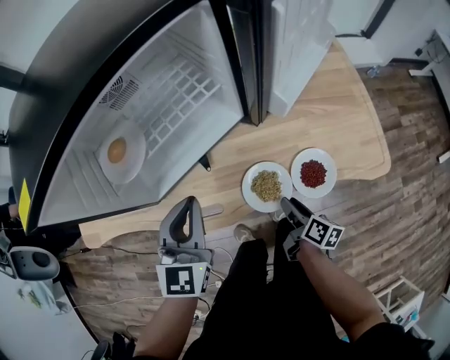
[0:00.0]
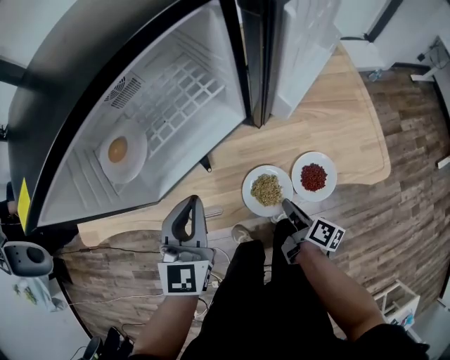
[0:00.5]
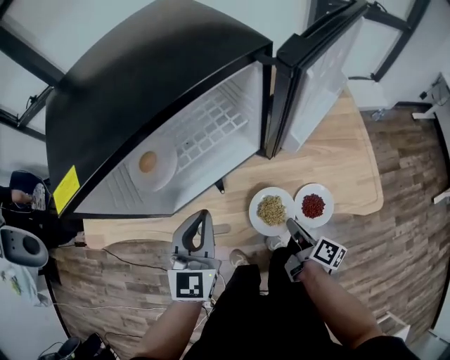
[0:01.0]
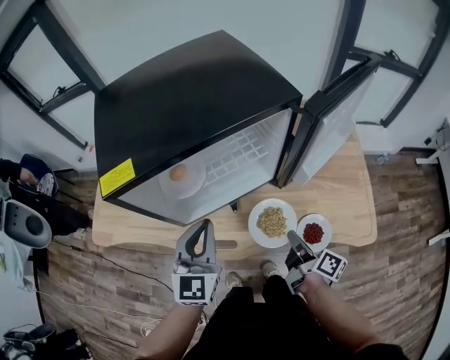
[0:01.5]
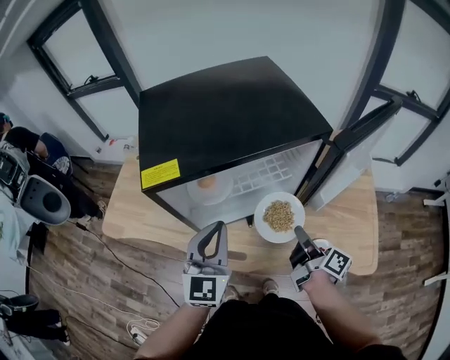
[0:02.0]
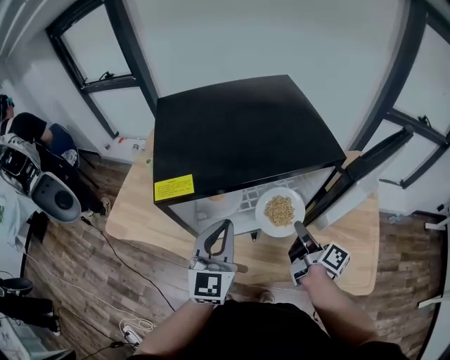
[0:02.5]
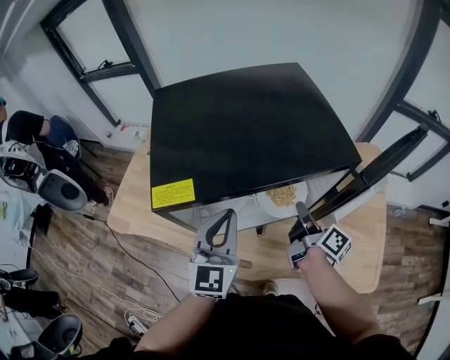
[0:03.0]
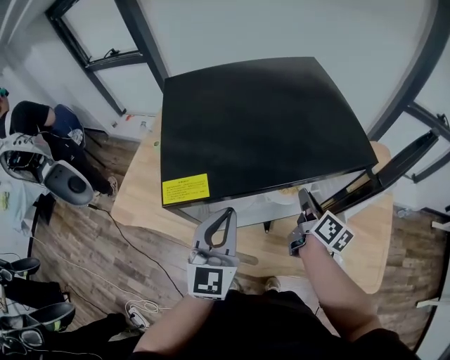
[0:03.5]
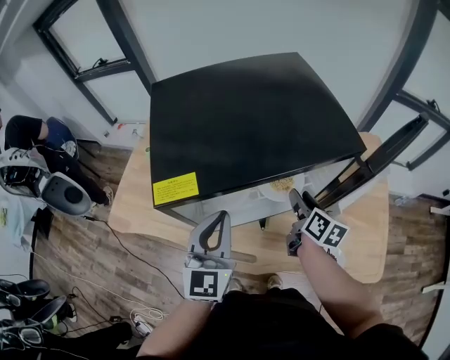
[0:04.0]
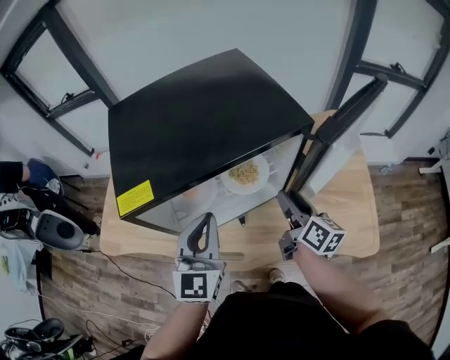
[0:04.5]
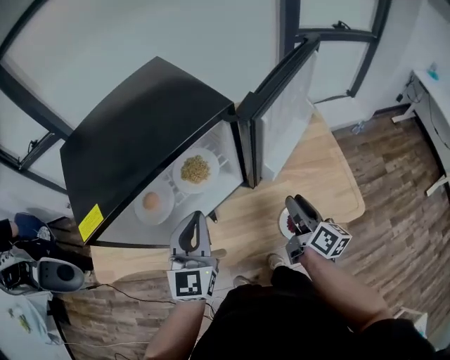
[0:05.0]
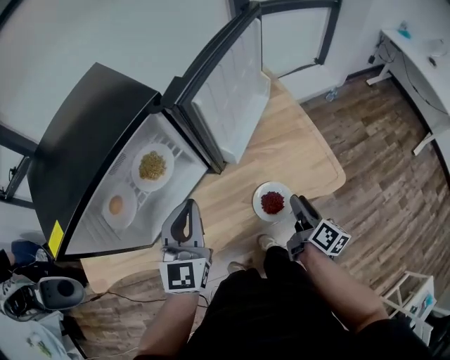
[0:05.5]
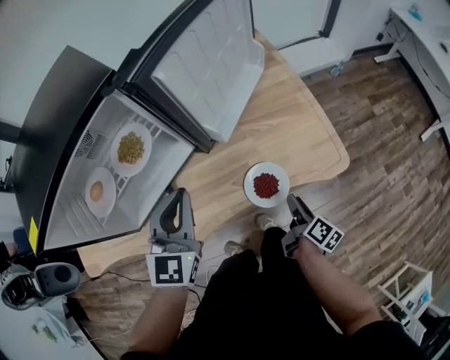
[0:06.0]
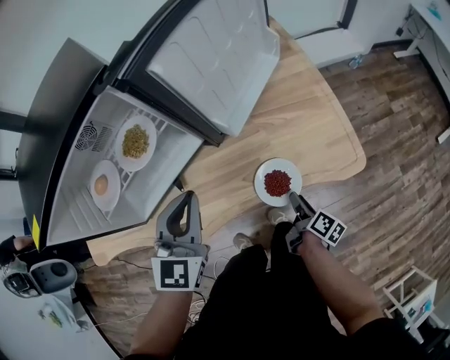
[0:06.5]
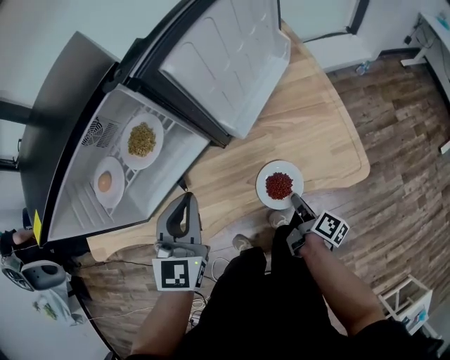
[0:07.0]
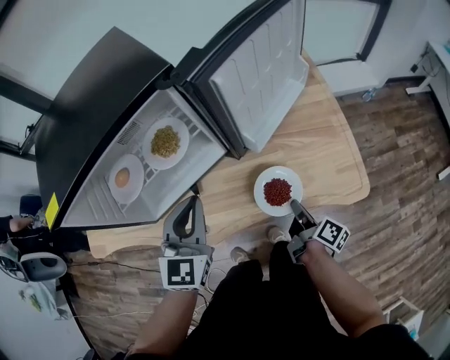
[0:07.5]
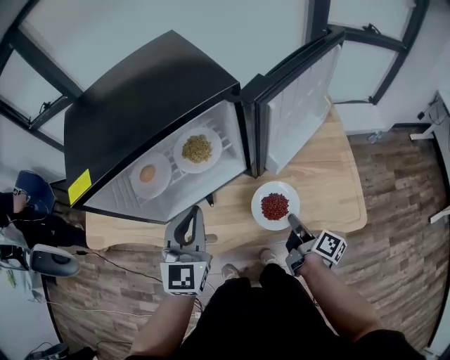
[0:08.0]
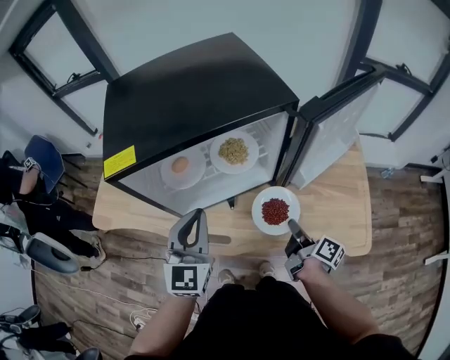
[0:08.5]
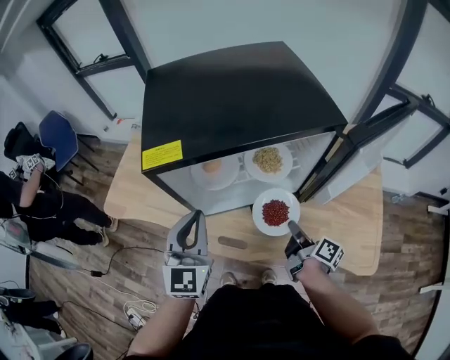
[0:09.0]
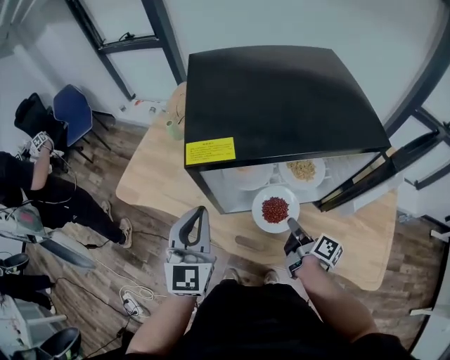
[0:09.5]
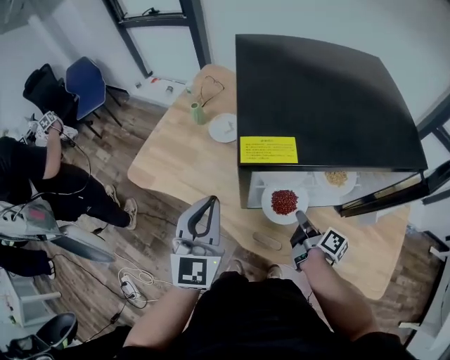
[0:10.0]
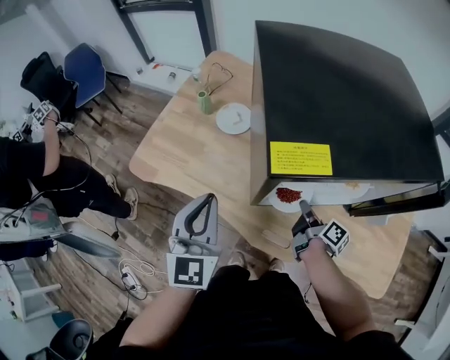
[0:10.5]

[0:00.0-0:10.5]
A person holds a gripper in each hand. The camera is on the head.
0:00.0 to 0:02.0: The left gripper travels upward and to the left by approximately 15 cm, and turns by roughly 20 degrees, while the right gripper heads upward and forward, covering about 25 cm, rotates roughly 30 degrees, and closes.
0:02.0 to 0:04.0: The left gripper is displaced forward by roughly 5 cm. The right gripper is displaced forward by some 15 cm, turns by roughly 30 degrees, and opens its fingers.
0:04.0 to 0:06.5: The right gripper moves roughly 50 cm, and rotates around the line of its fingers by about 40 degrees, clockwise from behind; the left gripper shifts by some 25 cm, and swivels some 30 degrees.
0:06.5 to 0:08.5: The right gripper changes place by roughly 25 cm, rotates about 30 degrees, and closes. The left gripper shifts by about 20 cm, and turns by approximately 30 degrees.
0:08.5 to 0:10.5: The right gripper heads to the left and forward, covering some 30 cm, while the left gripper shifts roughly 25 cm to the left.

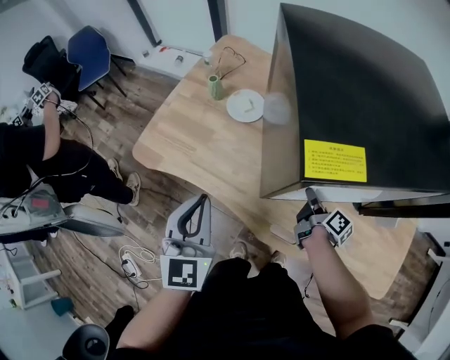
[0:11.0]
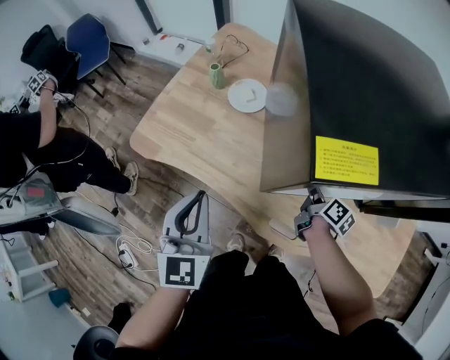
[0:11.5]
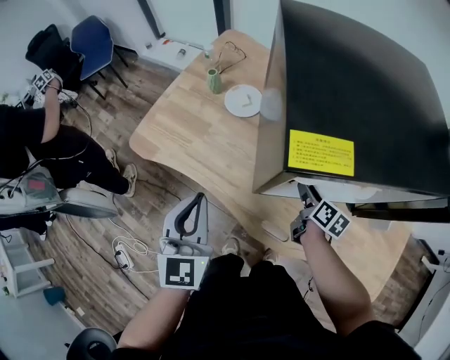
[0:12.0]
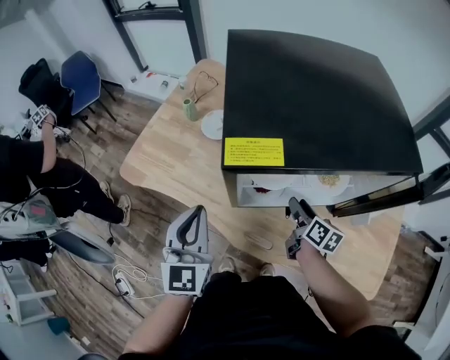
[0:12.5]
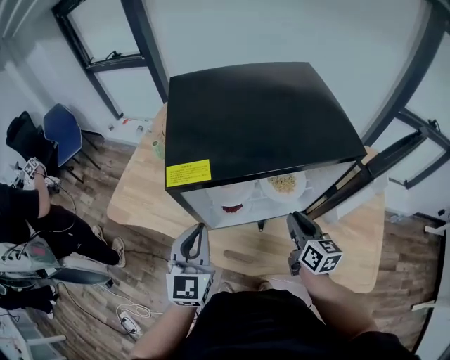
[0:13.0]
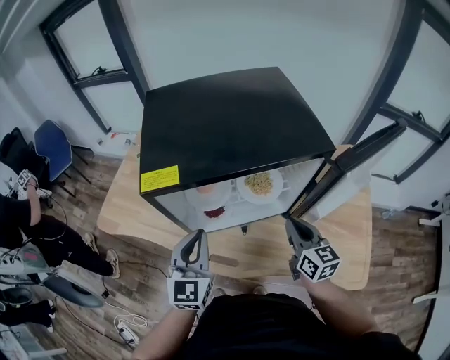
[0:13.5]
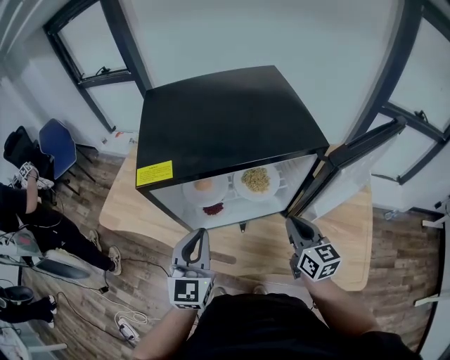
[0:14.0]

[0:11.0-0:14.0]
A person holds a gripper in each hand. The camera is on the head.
0:11.0 to 0:12.5: The left gripper travels to the right by approximately 5 cm. The right gripper travels upward by some 5 cm, turns by some 30 degrees, and opens up.
0:12.5 to 0:14.0: The left gripper heads to the right, covering approximately 15 cm. Meanwhile the right gripper is displaced upward, to the right and backward by roughly 20 cm, turns by approximately 30 degrees, and closes.

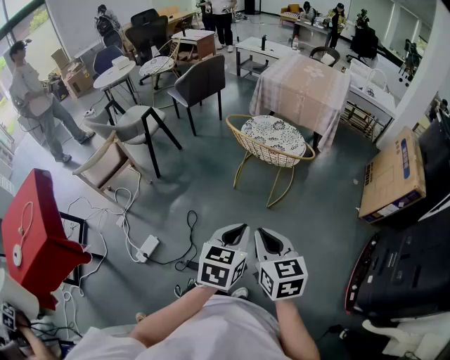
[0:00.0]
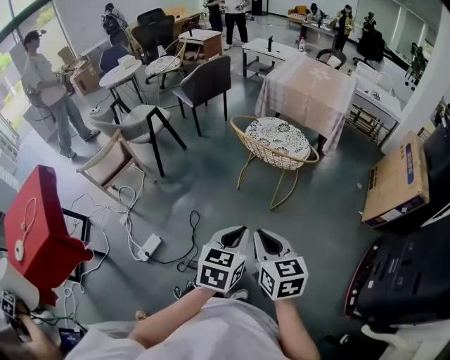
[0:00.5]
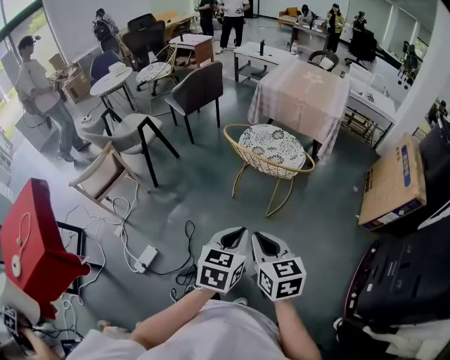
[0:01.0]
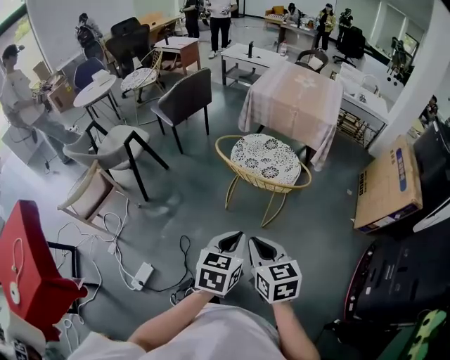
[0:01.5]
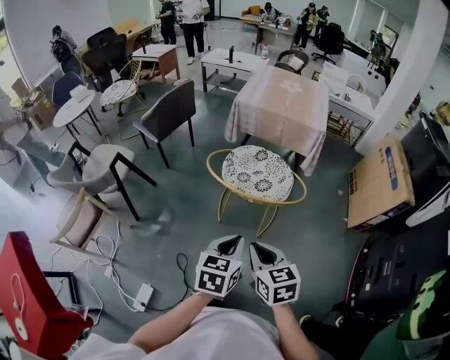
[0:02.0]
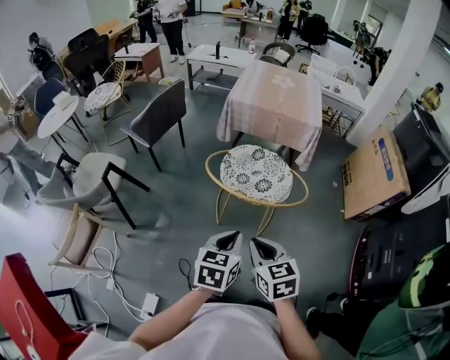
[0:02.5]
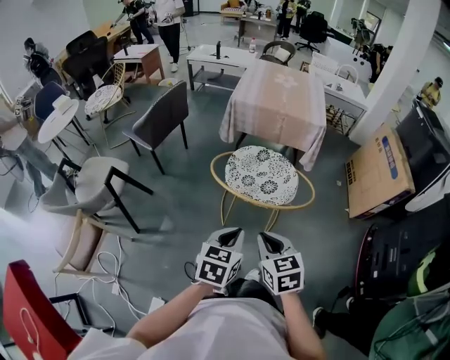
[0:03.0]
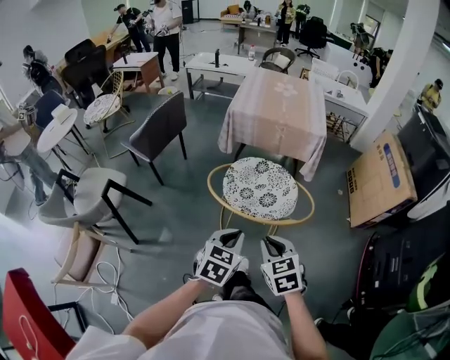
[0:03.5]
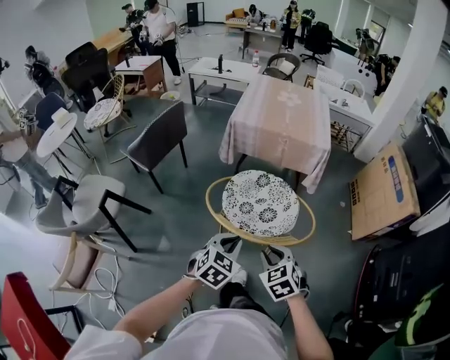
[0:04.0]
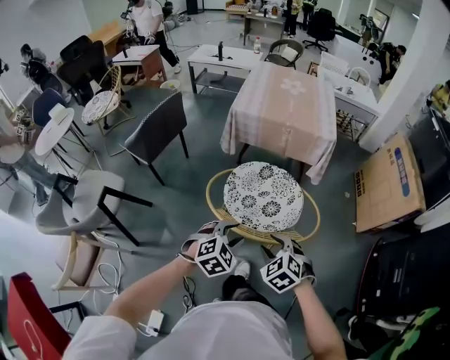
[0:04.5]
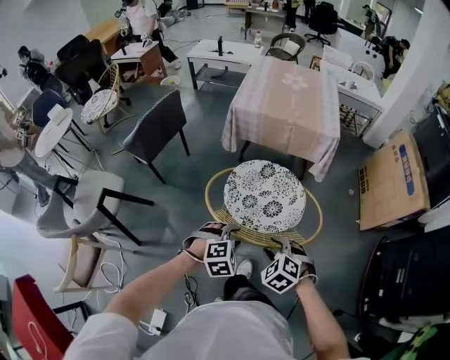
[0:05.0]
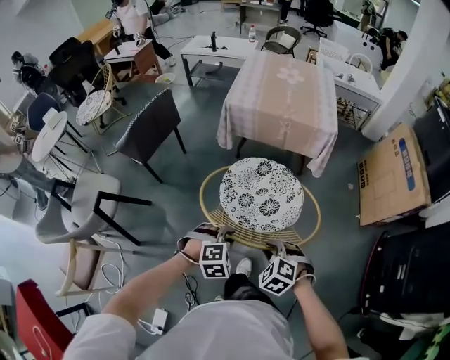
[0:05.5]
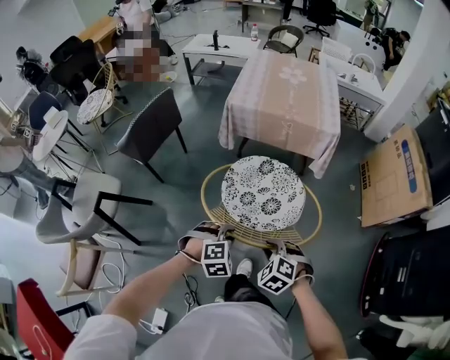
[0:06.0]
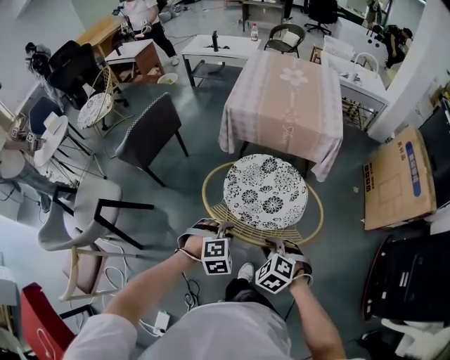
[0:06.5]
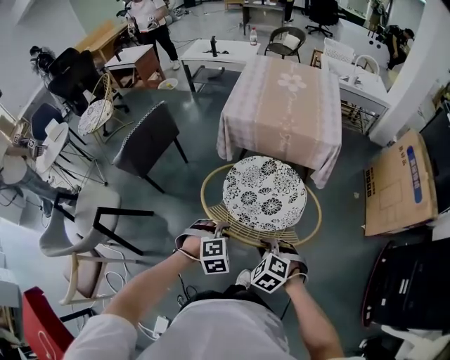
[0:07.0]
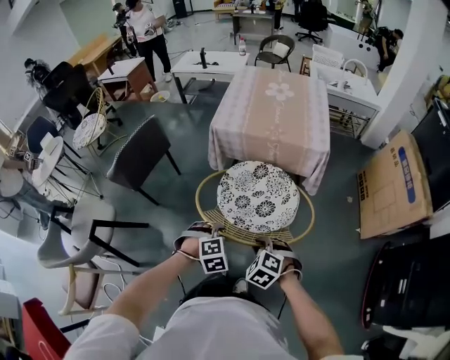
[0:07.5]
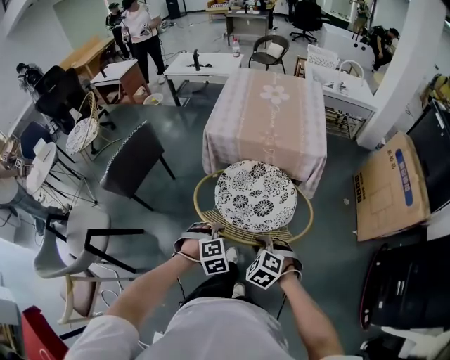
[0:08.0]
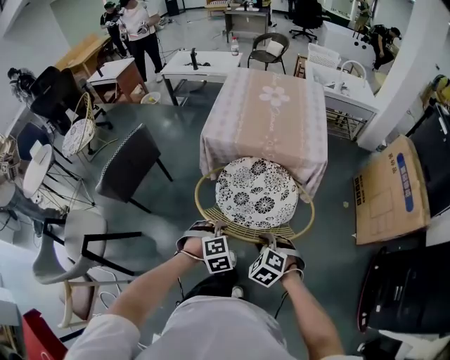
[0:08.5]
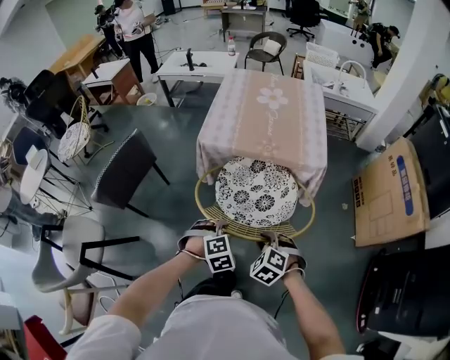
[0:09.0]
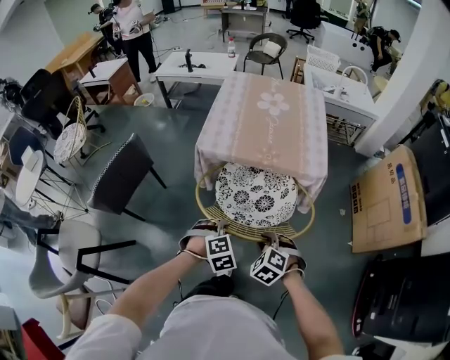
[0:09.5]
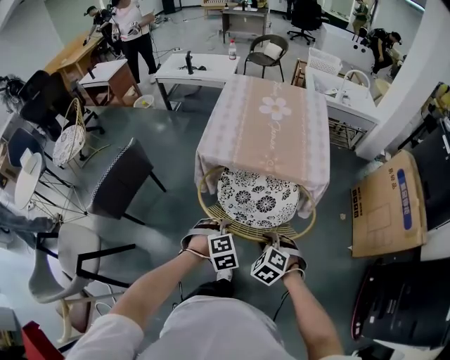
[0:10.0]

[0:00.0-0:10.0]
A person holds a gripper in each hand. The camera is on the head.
0:00.0 to 0:02.0: The grippers both shift forward by approximately 20 cm.
0:02.0 to 0:04.0: The grippers both shift forward and downward by roughly 20 cm. The left gripper turns by roughly 30 degrees. Meanwhile the right gripper swivels roughly 30 degrees.
0:04.0 to 0:06.0: The two grippers go some 10 cm downward and forward. The right gripper rotates approximately 30 degrees. The left gripper twists roughly 40 degrees clockwise, seen from behind, and opens its fingers.
0:06.0 to 0:08.0: Both grippers travel together forward, about 15 cm.
0:08.0 to 0:10.0: Both grippers travel together forward, approximately 15 cm.

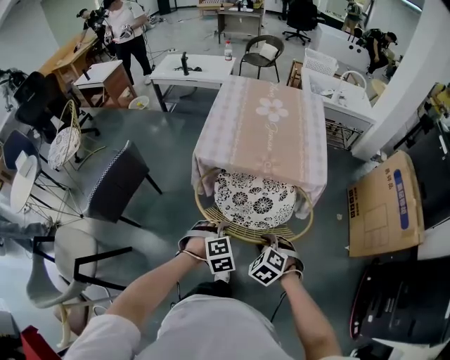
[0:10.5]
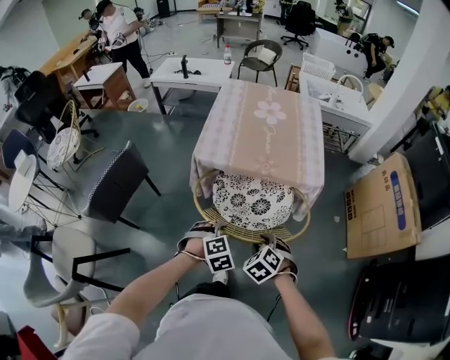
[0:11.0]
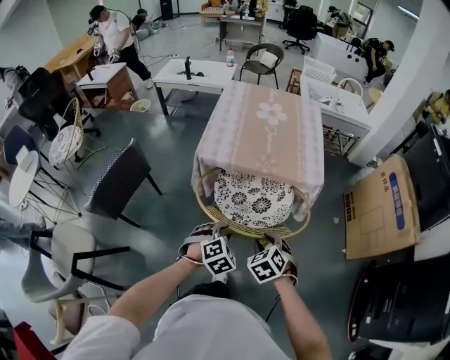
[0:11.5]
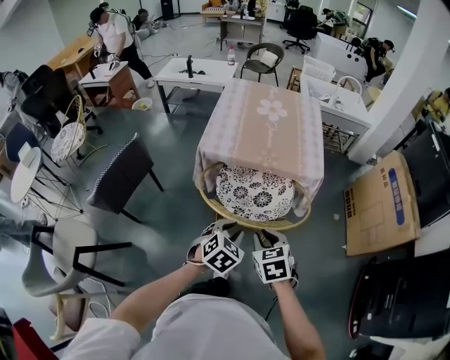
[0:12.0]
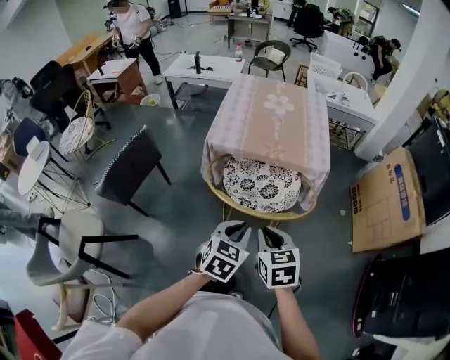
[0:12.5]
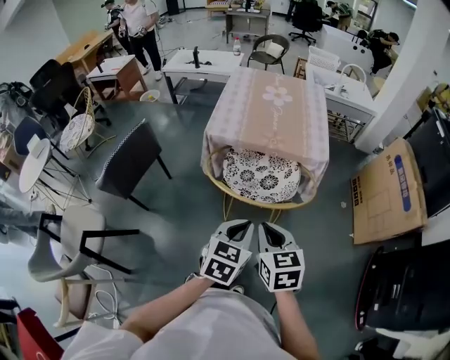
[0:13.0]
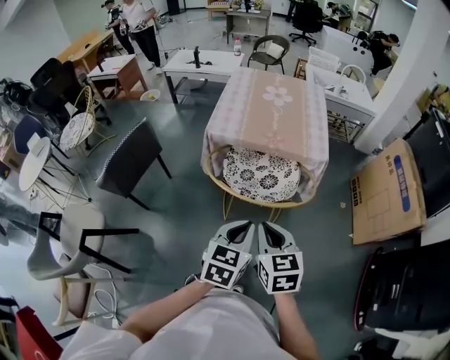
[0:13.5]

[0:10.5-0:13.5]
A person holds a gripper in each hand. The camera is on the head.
0:10.5 to 0:12.0: Both grippers move upward, about 10 cm. The left gripper rotates approximately 40 degrees. The right gripper changes its angle by approximately 40 degrees.
0:12.0 to 0:13.5: Both grippers travel together upward and backward, roughly 10 cm. The left gripper changes its angle by roughly 30 degrees, and closes its fingers.
